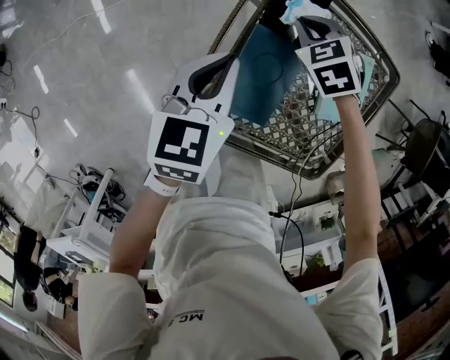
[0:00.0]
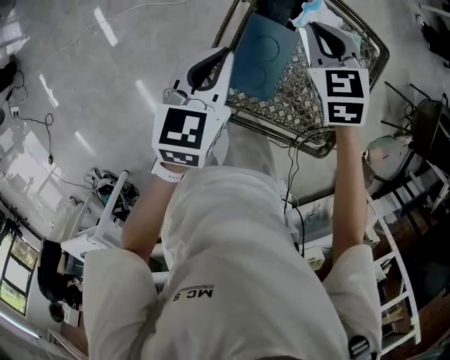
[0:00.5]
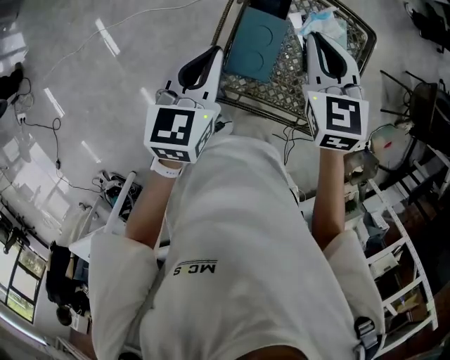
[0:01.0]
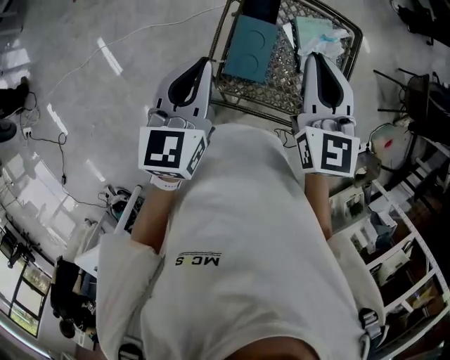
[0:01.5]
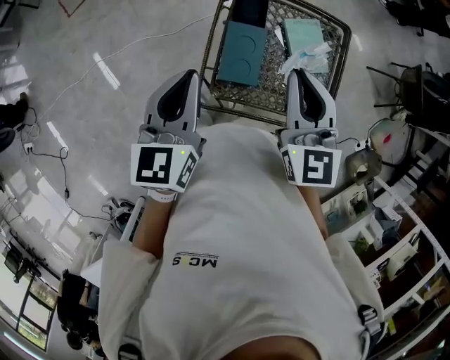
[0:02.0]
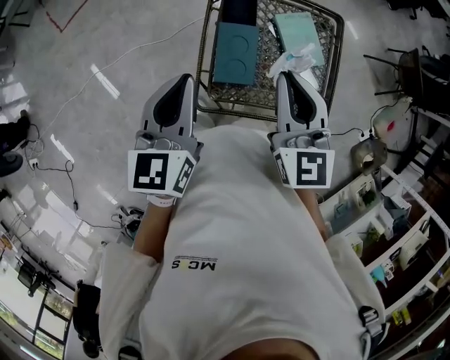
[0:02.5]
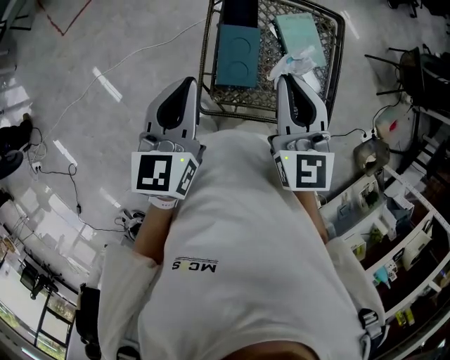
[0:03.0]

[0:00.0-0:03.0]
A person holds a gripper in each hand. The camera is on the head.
0:00.0 to 0:01.5: The right gripper is displaced upward and backward by about 40 cm, and tips its fingers upward by some 50 degrees; the left gripper shifts roughly 25 cm upward and backward.
0:01.5 to 0:03.0: The right gripper is displaced backward by some 5 cm.

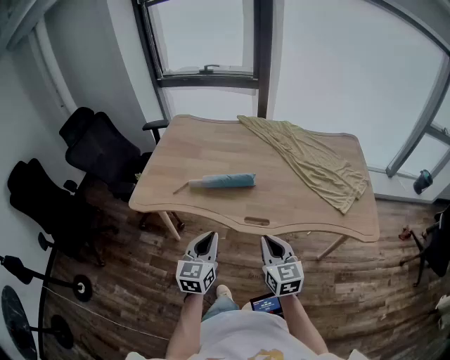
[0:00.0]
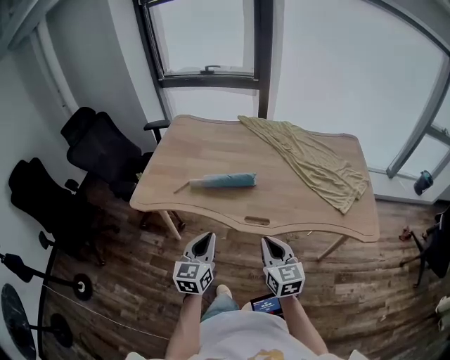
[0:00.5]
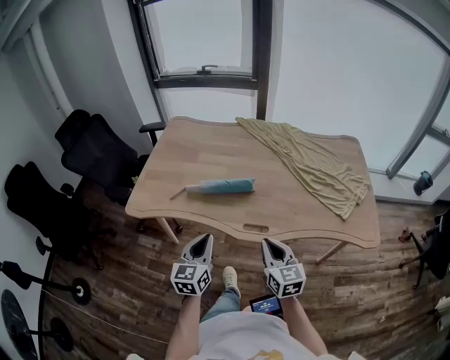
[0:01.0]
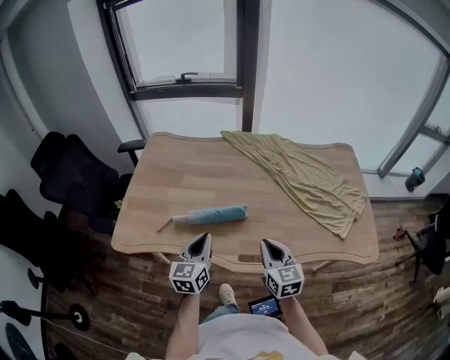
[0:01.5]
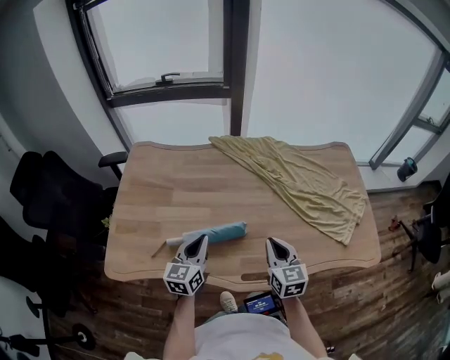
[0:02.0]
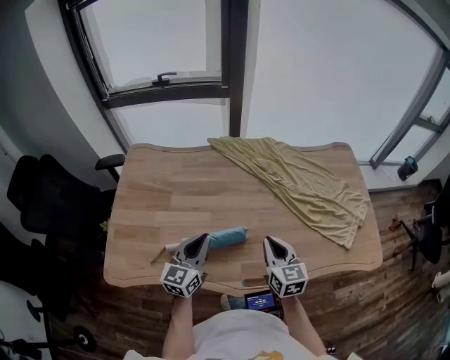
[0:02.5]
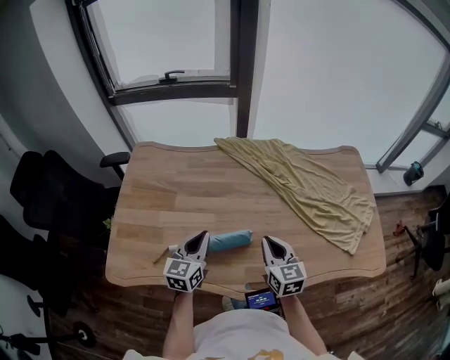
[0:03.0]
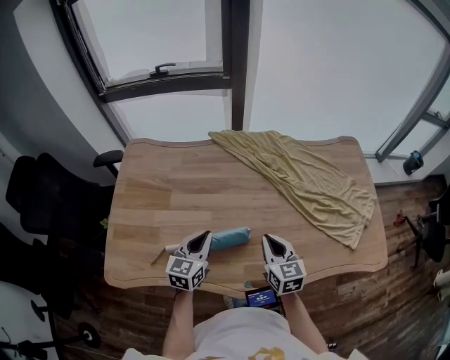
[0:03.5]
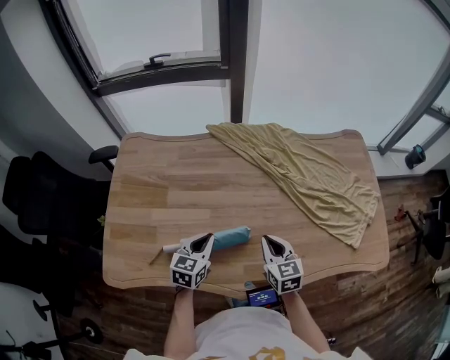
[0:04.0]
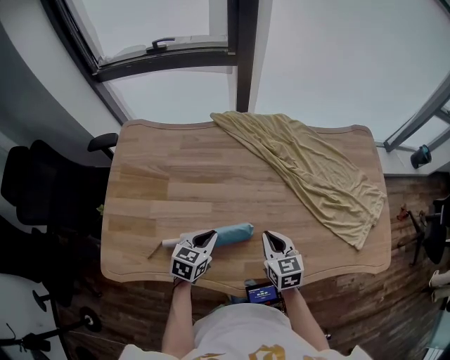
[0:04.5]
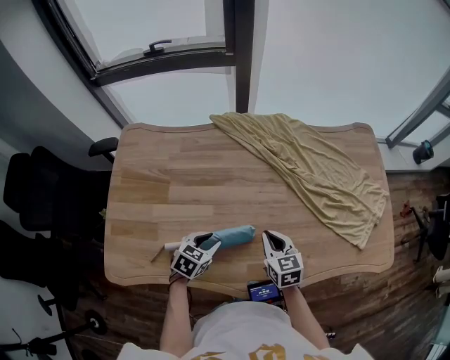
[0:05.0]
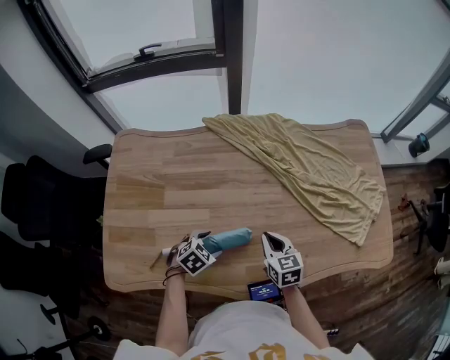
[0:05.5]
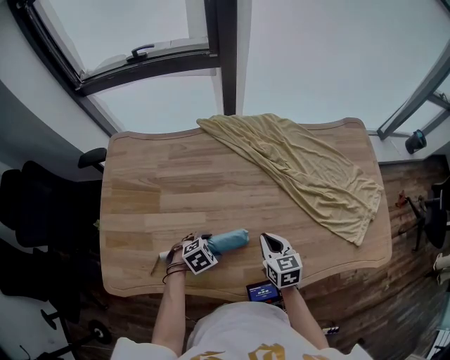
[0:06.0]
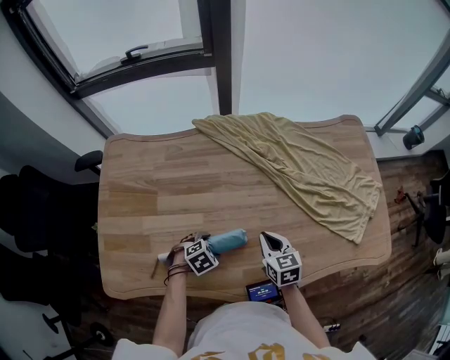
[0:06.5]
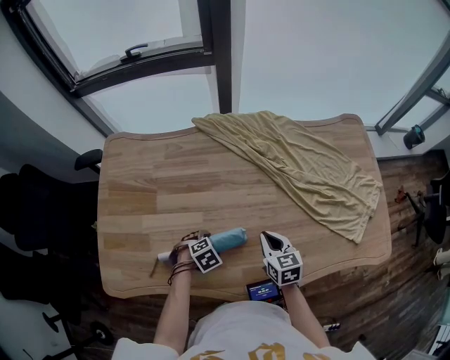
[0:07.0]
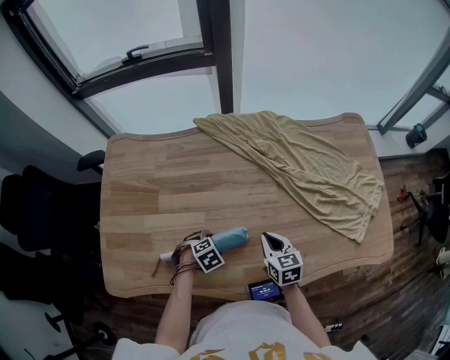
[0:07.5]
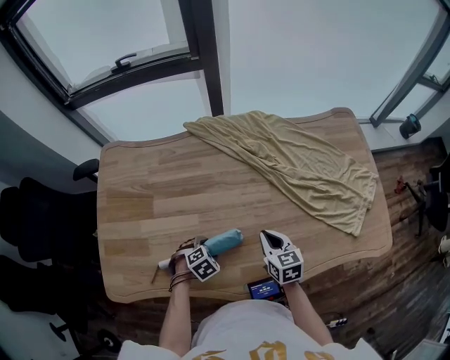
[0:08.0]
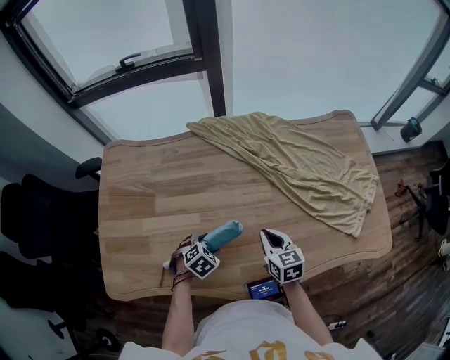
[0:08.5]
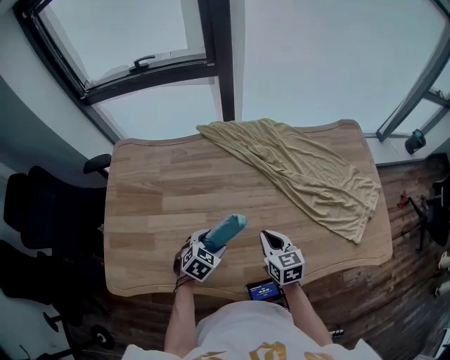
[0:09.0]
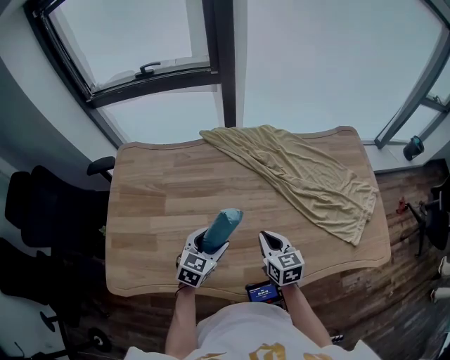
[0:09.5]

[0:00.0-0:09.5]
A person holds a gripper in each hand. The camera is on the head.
0:00.0 to 0:02.0: Both grippers move forward, roughly 30 cm.
0:02.0 to 0:04.0: Both grippers move downward and forward, about 10 cm. The left gripper changes its angle by about 20 degrees.
0:04.0 to 0:05.5: The left gripper travels downward by roughly 10 cm, changes its angle by some 40 degrees, and opens its fingers. Meanwhile the right gripper shifts by roughly 5 cm.
0:05.5 to 0:07.5: The left gripper goes about 5 cm downward, and turns by about 20 degrees.
0:07.5 to 0:09.5: The right gripper is displaced upward by some 5 cm. Meanwhile the left gripper goes approximately 15 cm upward, and tilts its fingers some 40 degrees upward.

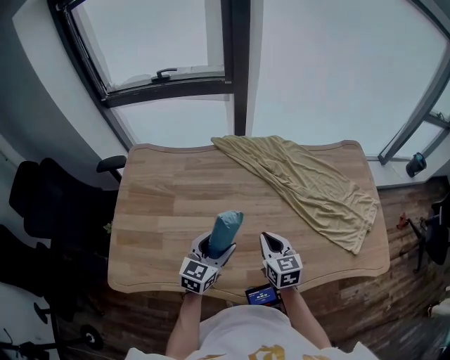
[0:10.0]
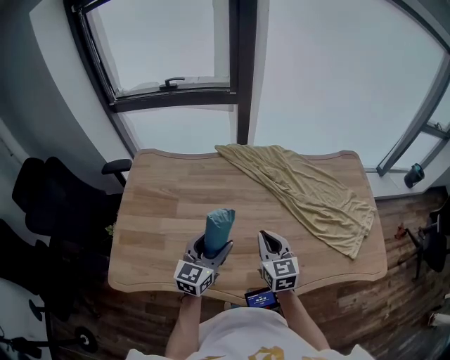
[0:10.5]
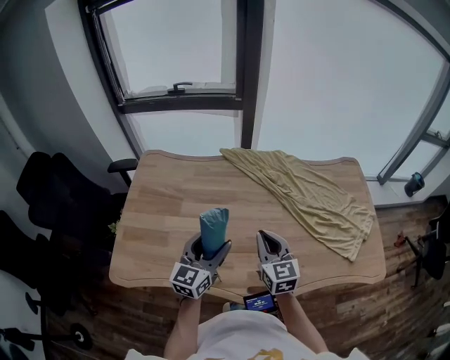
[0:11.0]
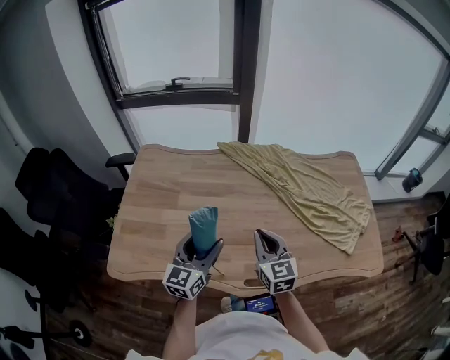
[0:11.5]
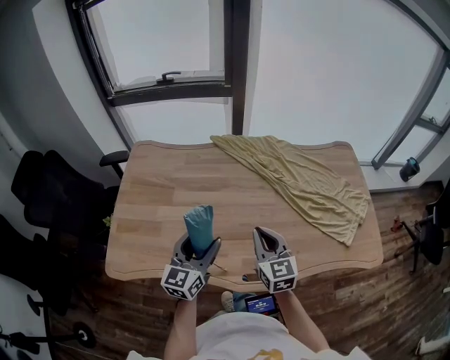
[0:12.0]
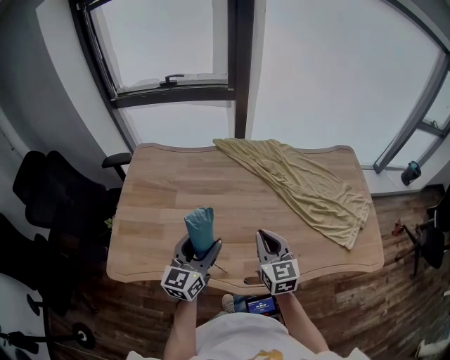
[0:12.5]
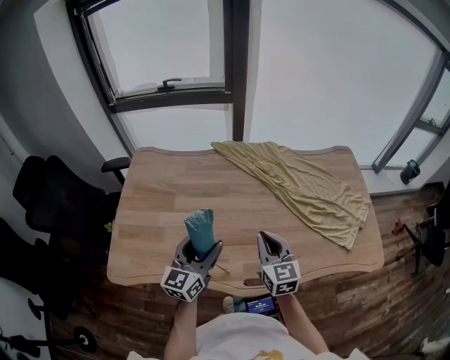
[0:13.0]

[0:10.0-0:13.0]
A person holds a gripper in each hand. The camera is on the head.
0:10.0 to 0:11.5: Both grippers move upward and backward, roughly 10 cm.
0:11.5 to 0:13.0: There are only small adjustments of the grippers.

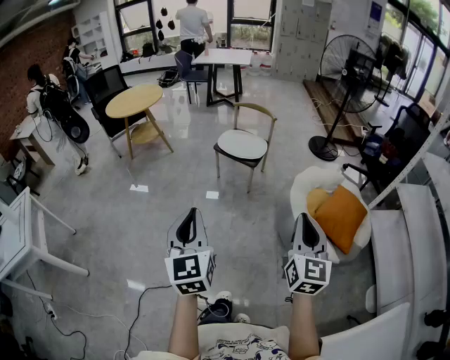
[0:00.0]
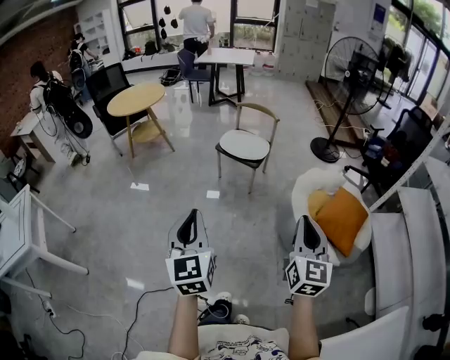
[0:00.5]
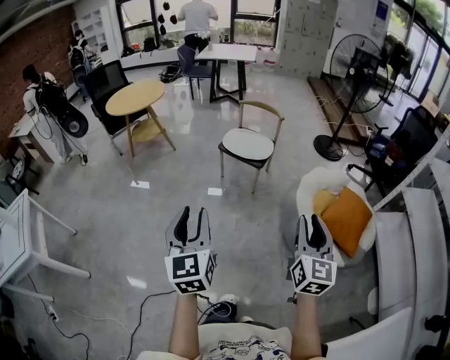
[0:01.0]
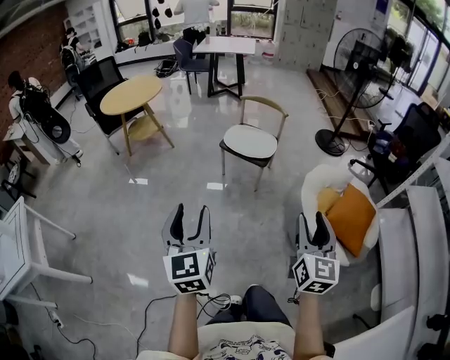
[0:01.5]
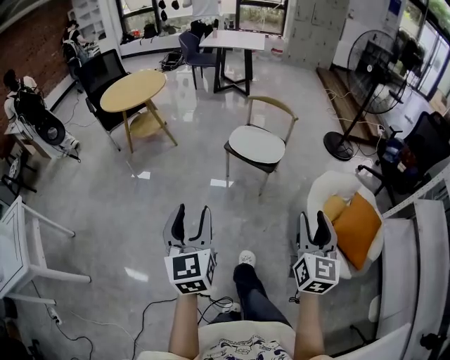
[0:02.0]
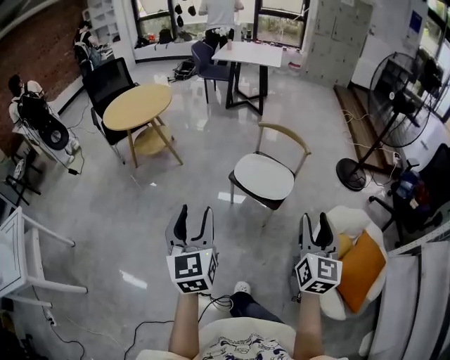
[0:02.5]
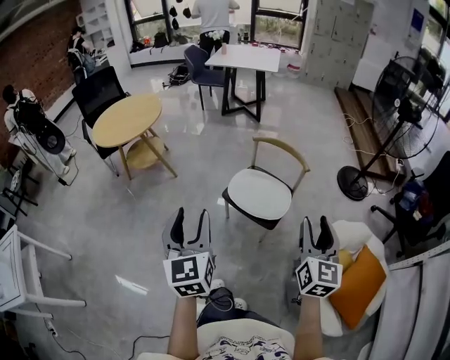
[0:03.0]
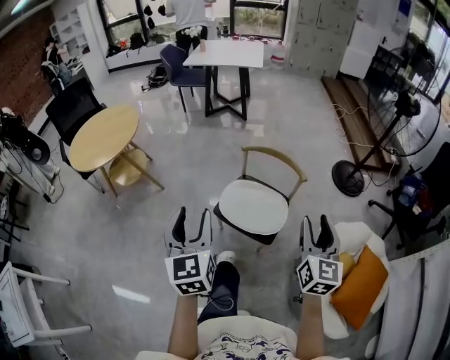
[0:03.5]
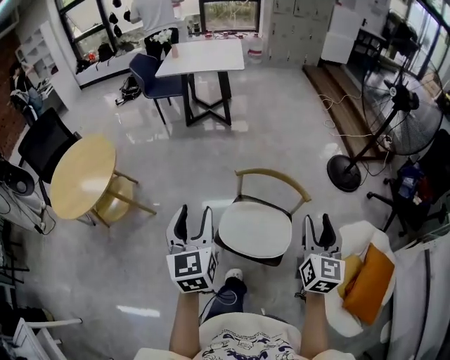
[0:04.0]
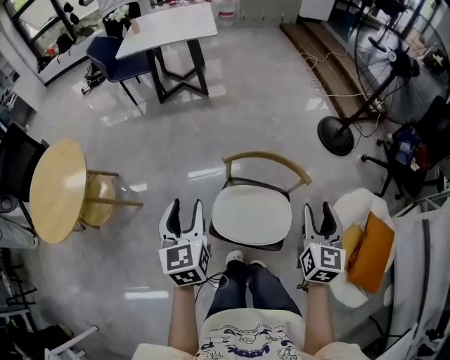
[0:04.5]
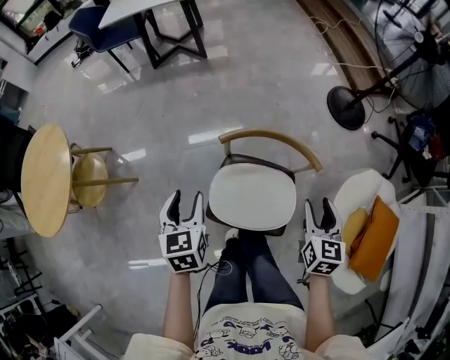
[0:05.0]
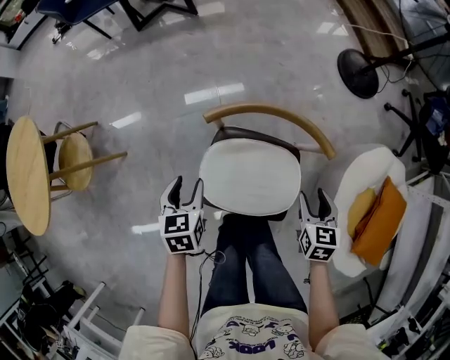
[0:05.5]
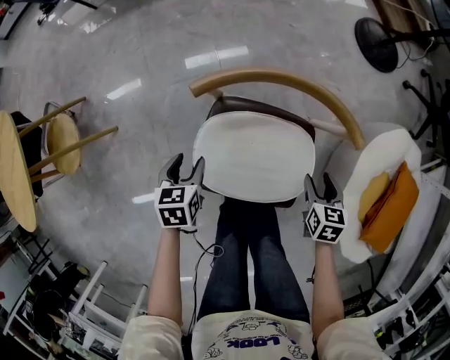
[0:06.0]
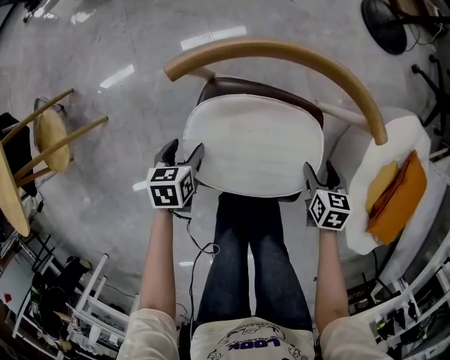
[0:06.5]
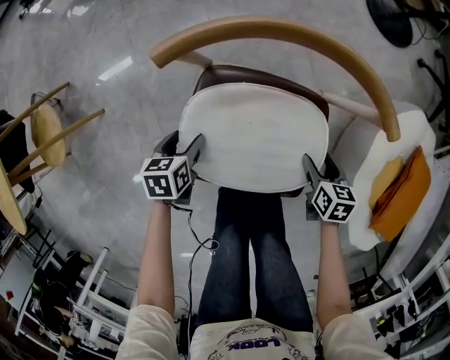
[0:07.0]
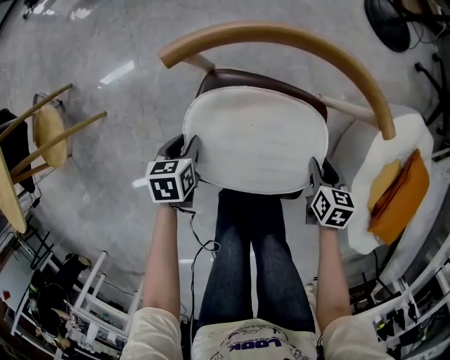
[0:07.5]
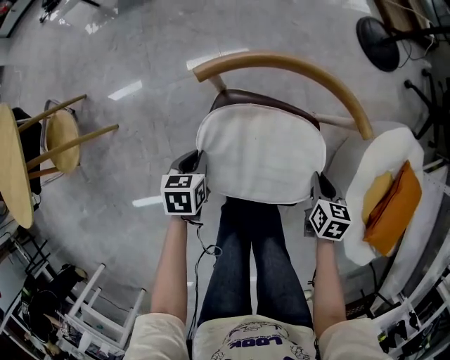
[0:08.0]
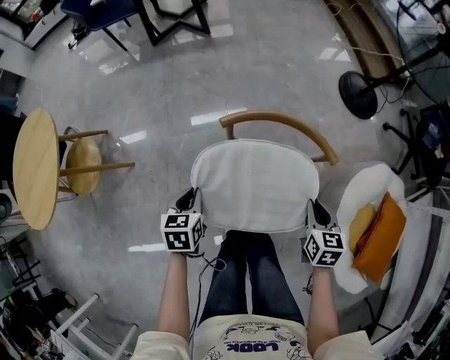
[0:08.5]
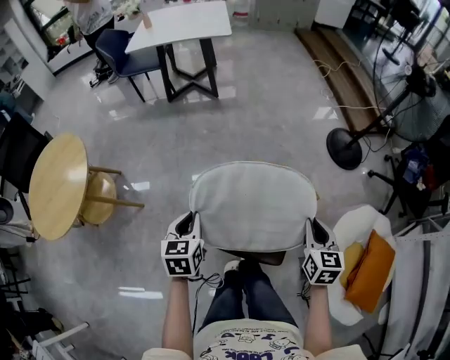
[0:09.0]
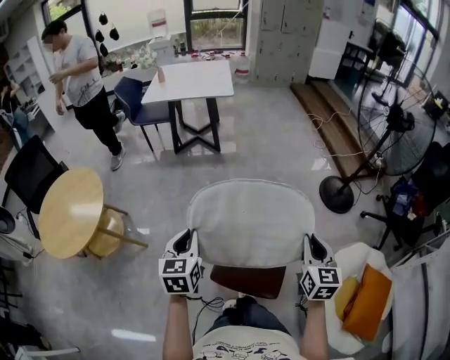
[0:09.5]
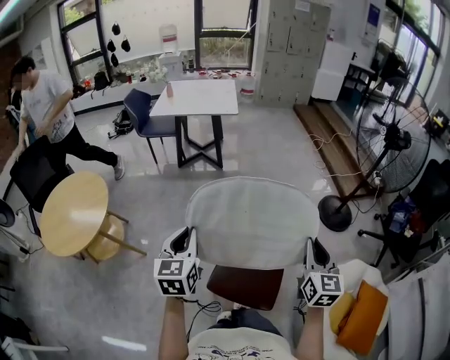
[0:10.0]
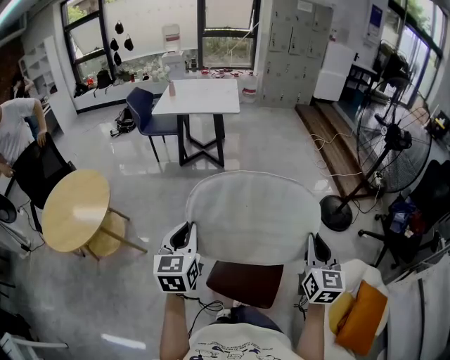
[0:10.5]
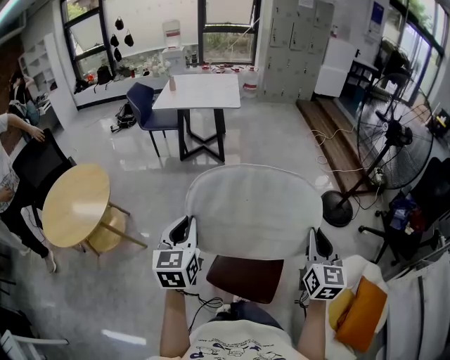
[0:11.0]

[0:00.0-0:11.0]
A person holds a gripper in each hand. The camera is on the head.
0:00.0 to 0:02.0: The two grippers go about 30 cm forward. The left gripper opens its fingers, while the right gripper opens up.
0:02.0 to 0:03.5: Both grippers are carried forward, some 70 cm.
0:03.5 to 0:05.5: Both grippers are carried forward, approximately 50 cm. The two grippers go roughly 50 cm downward. The left gripper points its fingers roughly 40 degrees further downward. Meanwhile the right gripper points its fingers some 40 degrees further downward.
0:05.5 to 0:07.5: The grippers both shift downward by roughly 30 cm.
0:07.5 to 0:09.0: Both grippers move upward, some 50 cm. The right gripper turns by roughly 30 degrees. The left gripper rotates approximately 30 degrees.
0:09.0 to 0:11.0: The two grippers go approximately 25 cm upward. The left gripper turns by some 20 degrees. Meanwhile the right gripper turns by approximately 20 degrees.
